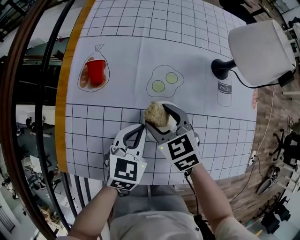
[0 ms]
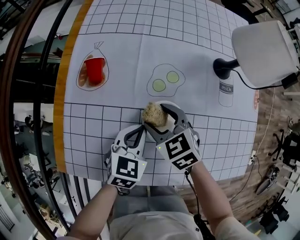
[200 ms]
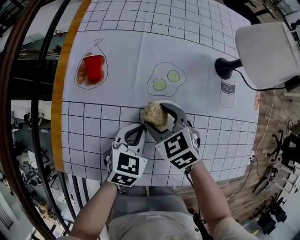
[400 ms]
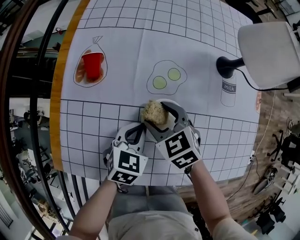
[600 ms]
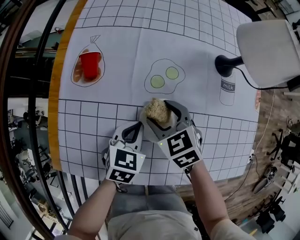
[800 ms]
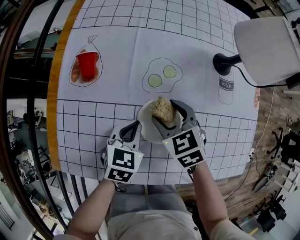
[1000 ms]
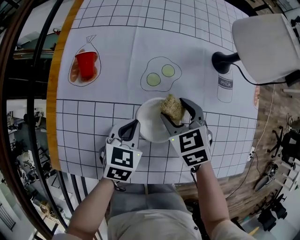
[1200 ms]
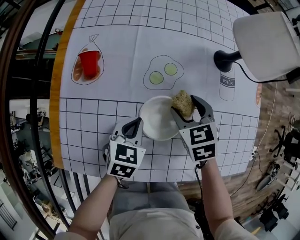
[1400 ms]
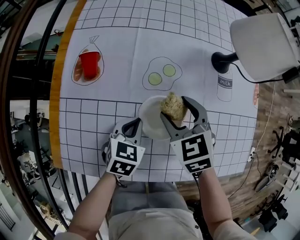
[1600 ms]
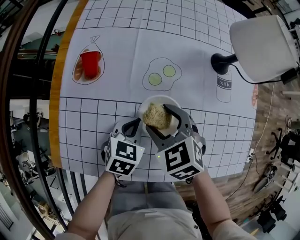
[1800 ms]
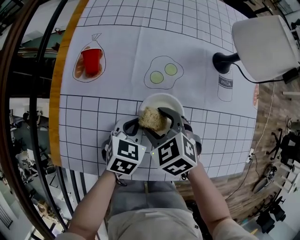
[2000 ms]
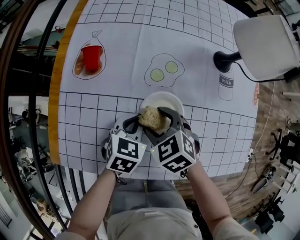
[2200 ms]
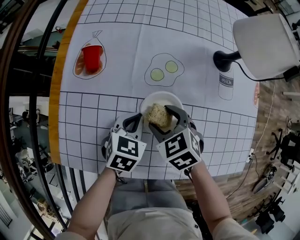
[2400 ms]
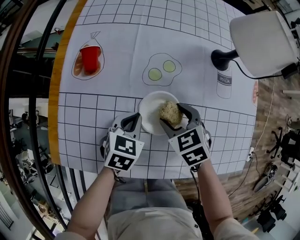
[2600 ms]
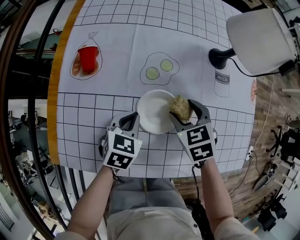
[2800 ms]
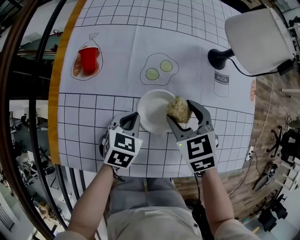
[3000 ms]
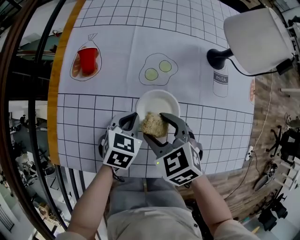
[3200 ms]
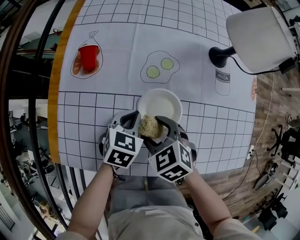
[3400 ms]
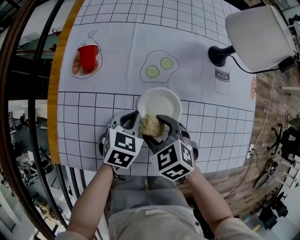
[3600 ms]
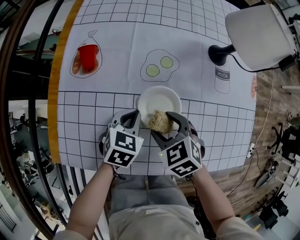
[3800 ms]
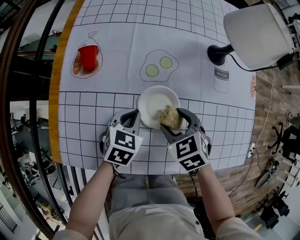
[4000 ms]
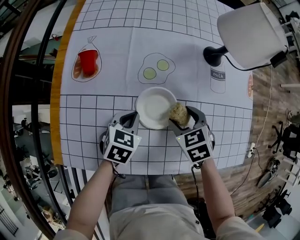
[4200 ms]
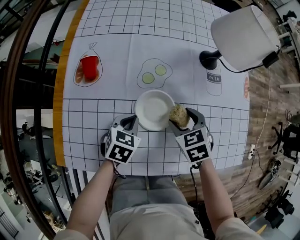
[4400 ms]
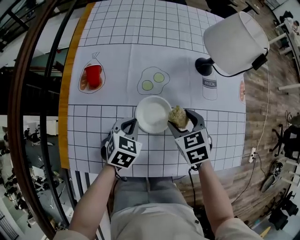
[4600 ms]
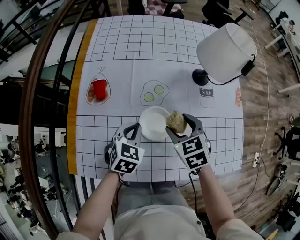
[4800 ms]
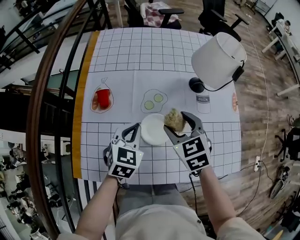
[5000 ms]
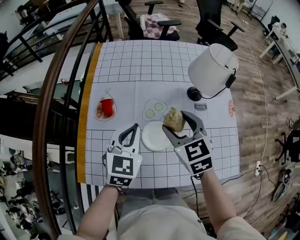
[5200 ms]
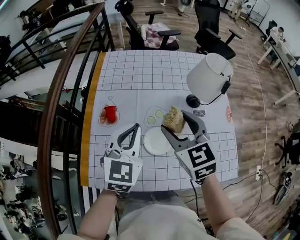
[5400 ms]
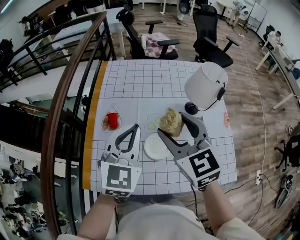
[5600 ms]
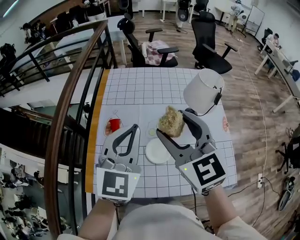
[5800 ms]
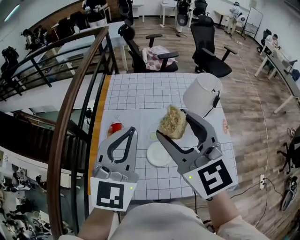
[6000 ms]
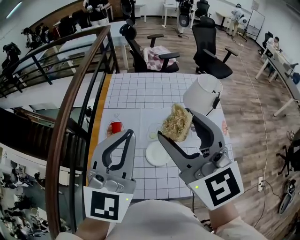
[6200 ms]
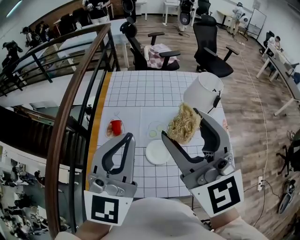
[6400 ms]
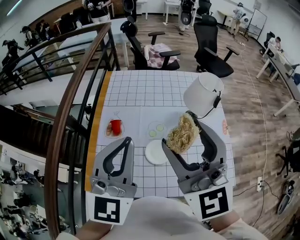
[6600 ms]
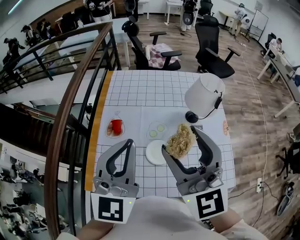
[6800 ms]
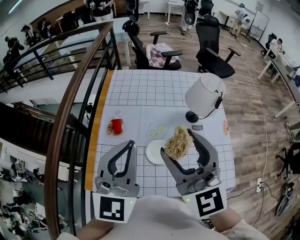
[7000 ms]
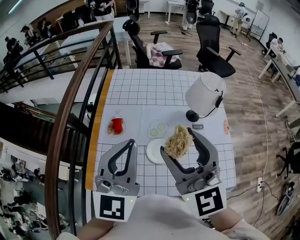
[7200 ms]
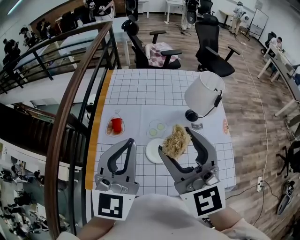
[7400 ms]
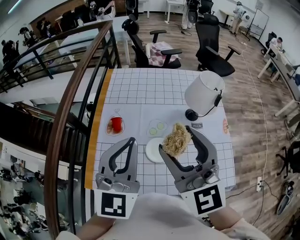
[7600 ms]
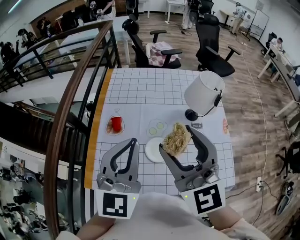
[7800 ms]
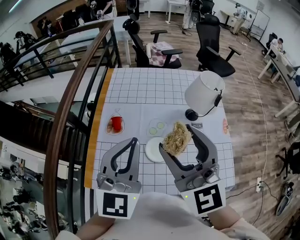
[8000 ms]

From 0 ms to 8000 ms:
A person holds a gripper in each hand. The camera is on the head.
From 0 ms to 1600 ms: The right gripper is displaced to the right by approximately 5 cm, while the left gripper is displaced downward by roughly 5 cm.
From 1600 ms to 3200 ms: The right gripper goes left and right, roughly 10 cm each way, reversing 2 times.
From 3200 ms to 4800 ms: The left gripper is displaced upward by about 10 cm. Meanwhile the right gripper shifts roughly 10 cm to the right and upward.
From 4800 ms to 6400 ms: The two grippers go about 40 cm upward. The left gripper tilts its fingers about 50 degrees upward. The right gripper tips its fingers upward by some 50 degrees.
From 6400 ms to 8000 ms: The two grippers go approximately 5 cm downward.

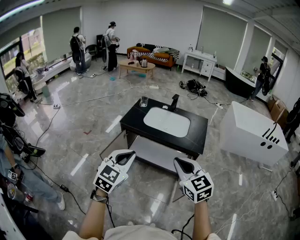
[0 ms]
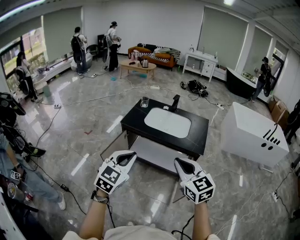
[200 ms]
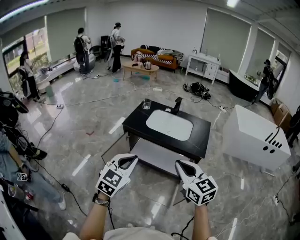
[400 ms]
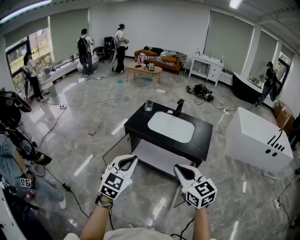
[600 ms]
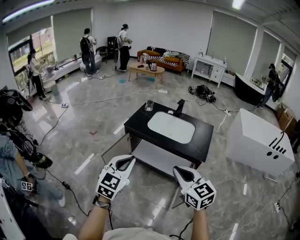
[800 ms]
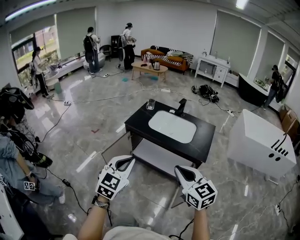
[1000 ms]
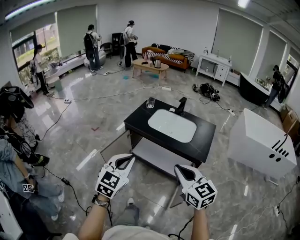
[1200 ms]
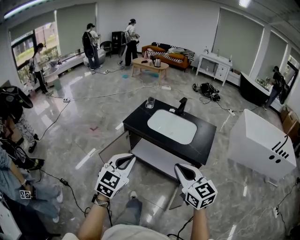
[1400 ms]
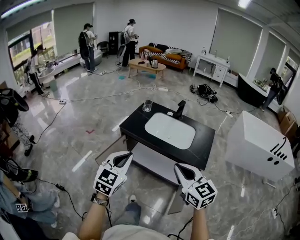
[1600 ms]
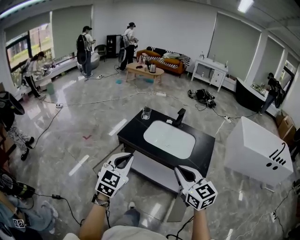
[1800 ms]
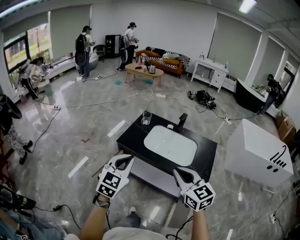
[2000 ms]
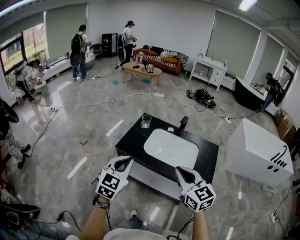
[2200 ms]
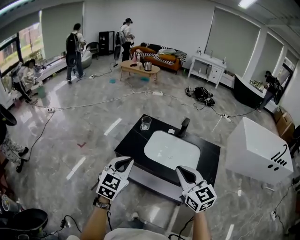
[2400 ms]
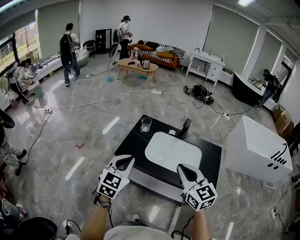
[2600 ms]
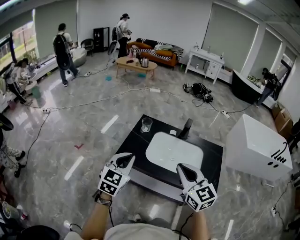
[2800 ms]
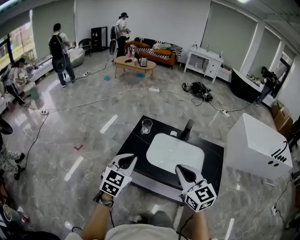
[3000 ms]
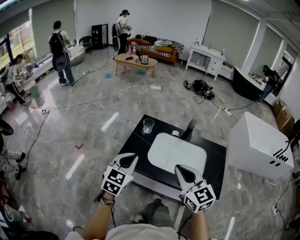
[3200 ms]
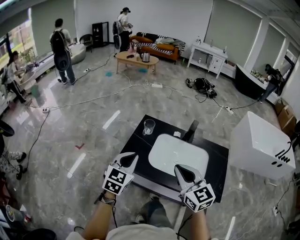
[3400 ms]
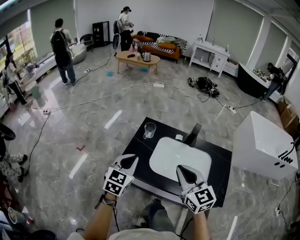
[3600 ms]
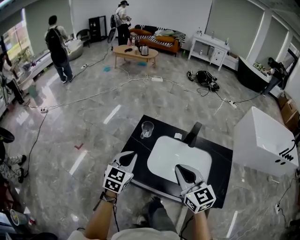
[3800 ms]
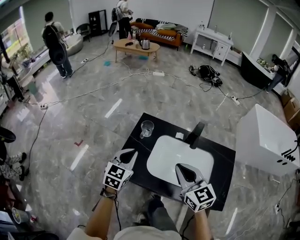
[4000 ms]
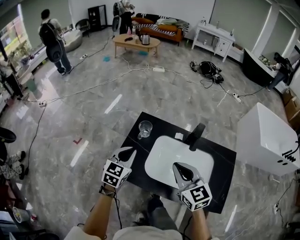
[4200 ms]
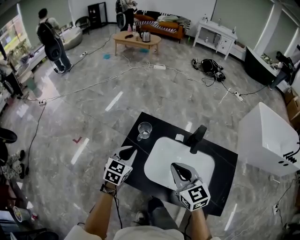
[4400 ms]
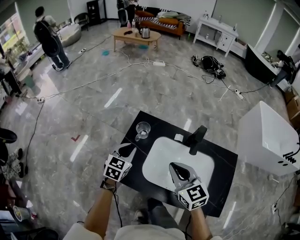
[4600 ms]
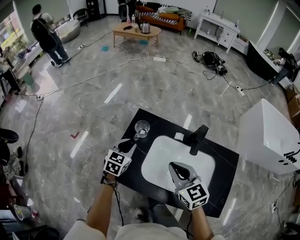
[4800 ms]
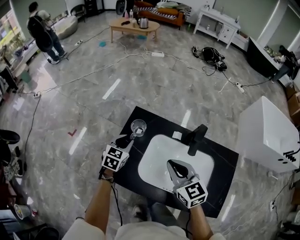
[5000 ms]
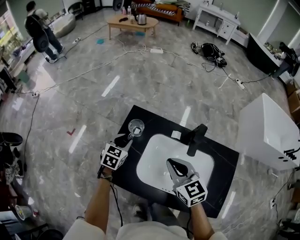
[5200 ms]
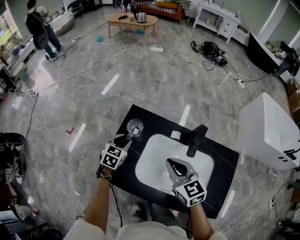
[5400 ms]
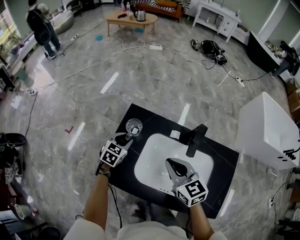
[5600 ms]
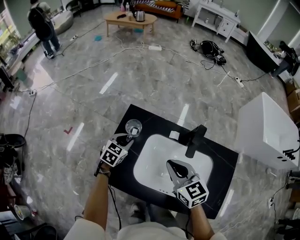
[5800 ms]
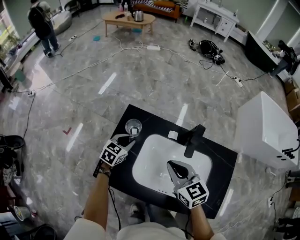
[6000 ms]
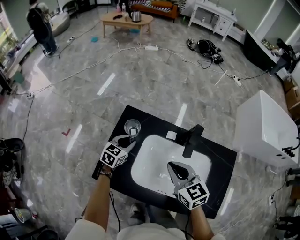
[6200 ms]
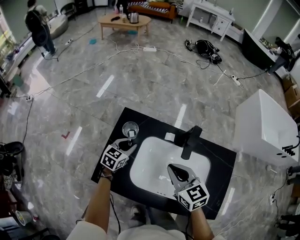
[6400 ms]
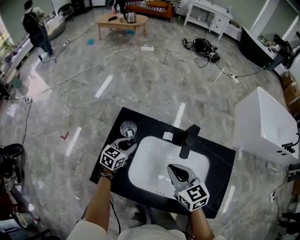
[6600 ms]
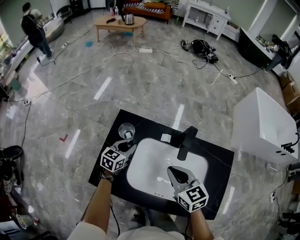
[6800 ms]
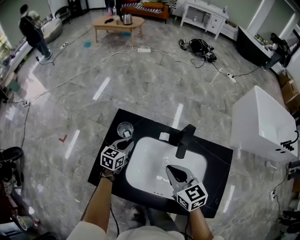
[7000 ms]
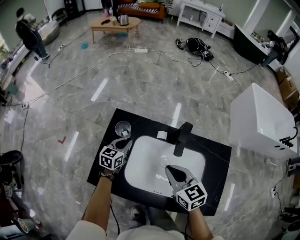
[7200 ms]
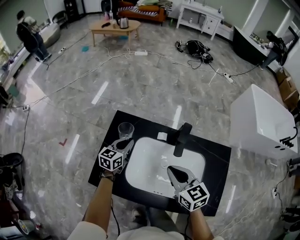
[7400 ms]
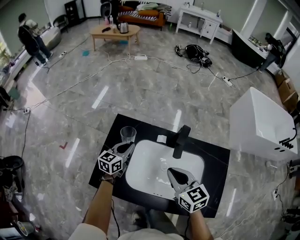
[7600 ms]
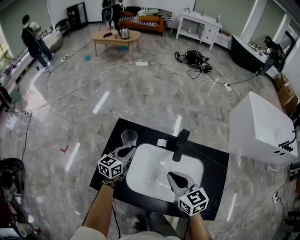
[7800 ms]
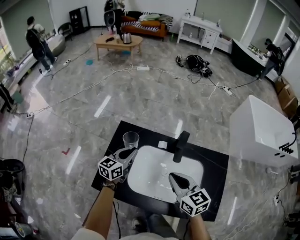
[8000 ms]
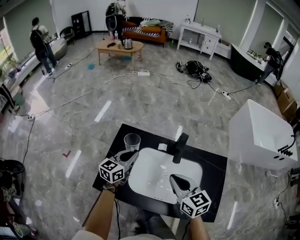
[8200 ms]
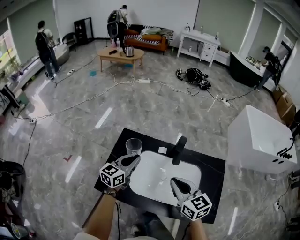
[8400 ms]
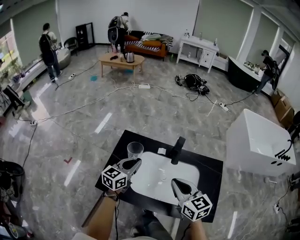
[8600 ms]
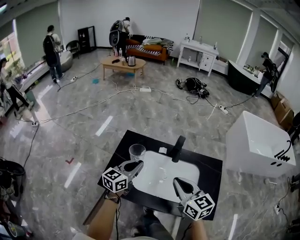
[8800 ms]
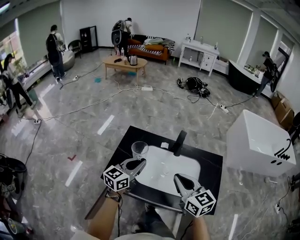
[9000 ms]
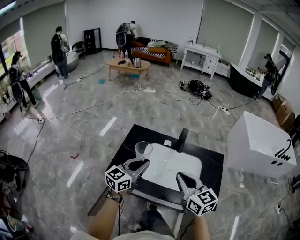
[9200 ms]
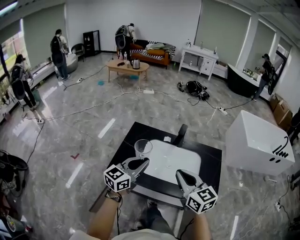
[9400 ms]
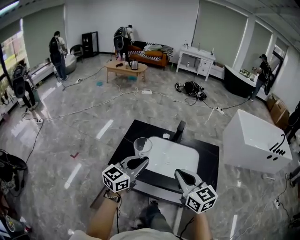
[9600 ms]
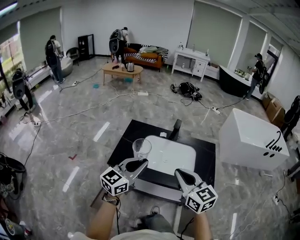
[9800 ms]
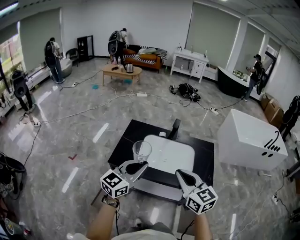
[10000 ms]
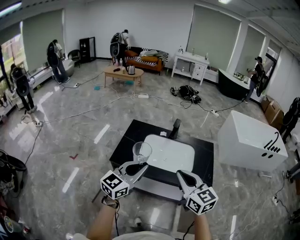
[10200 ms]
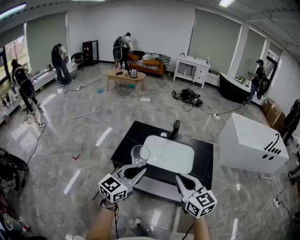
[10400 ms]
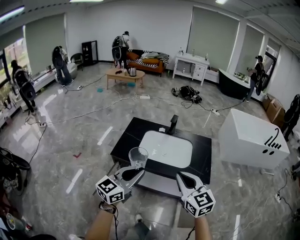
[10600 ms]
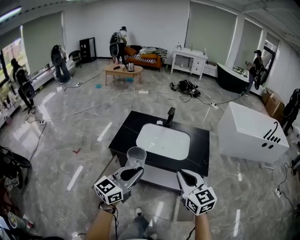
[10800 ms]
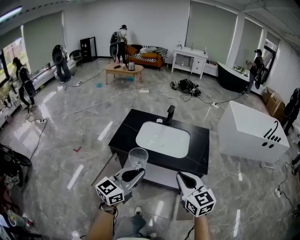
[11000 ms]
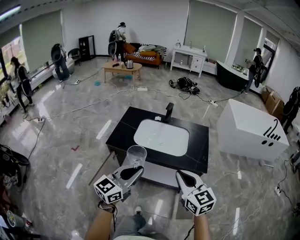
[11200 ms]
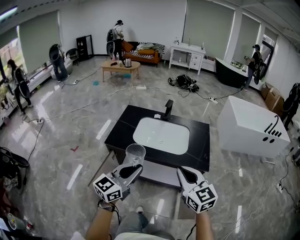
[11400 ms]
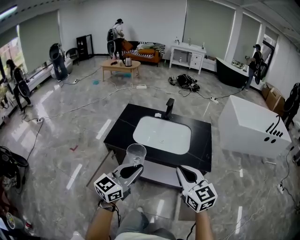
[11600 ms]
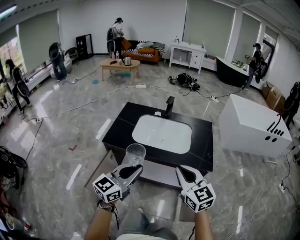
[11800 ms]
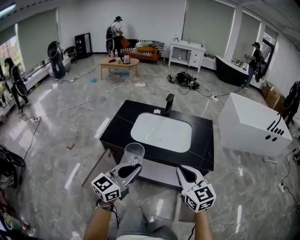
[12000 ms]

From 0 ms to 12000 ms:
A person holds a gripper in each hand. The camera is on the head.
From 0 ms to 1600 ms: The grippers both shift forward by about 10 cm.
From 1600 ms to 3000 ms: The two grippers go approximately 30 cm forward.
From 3000 ms to 4400 ms: The grippers both shift forward and downward by roughly 25 cm.
From 4400 ms to 6000 ms: The right gripper heads downward and forward, covering roughly 10 cm. Meanwhile the left gripper shifts approximately 15 cm downward and forward.
From 6000 ms to 7600 ms: The grippers both shift to the right by some 5 cm. The left gripper turns by some 20 degrees.
From 7600 ms to 9000 ms: Both grippers travel together backward and upward, some 20 cm.
From 9000 ms to 10400 ms: Both grippers travel together backward, some 30 cm.
From 10400 ms to 12000 ms: Both grippers travel together downward and to the right, some 15 cm.

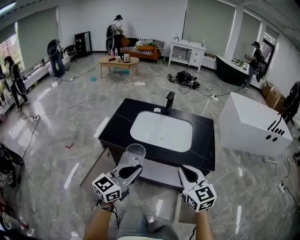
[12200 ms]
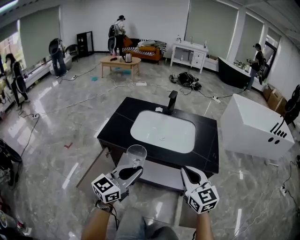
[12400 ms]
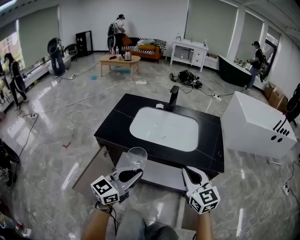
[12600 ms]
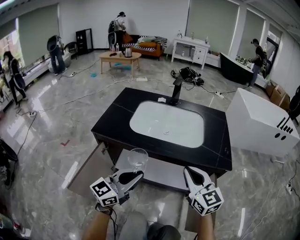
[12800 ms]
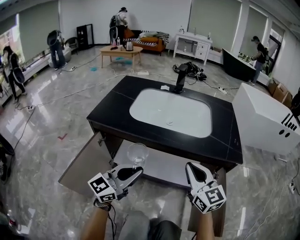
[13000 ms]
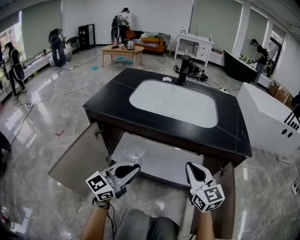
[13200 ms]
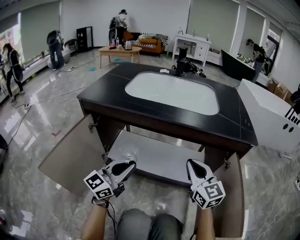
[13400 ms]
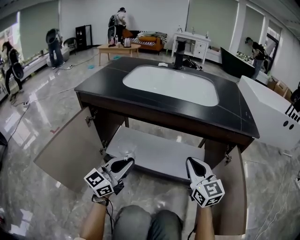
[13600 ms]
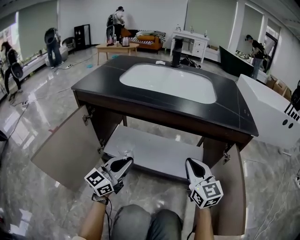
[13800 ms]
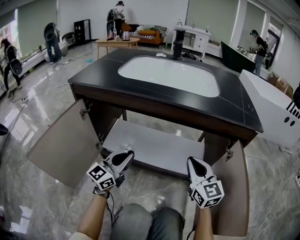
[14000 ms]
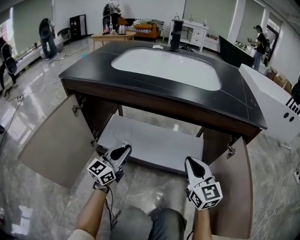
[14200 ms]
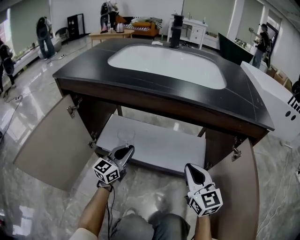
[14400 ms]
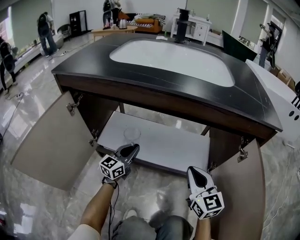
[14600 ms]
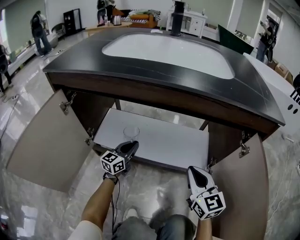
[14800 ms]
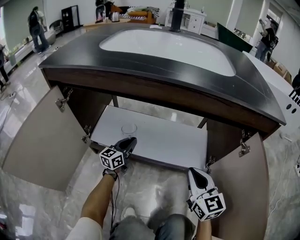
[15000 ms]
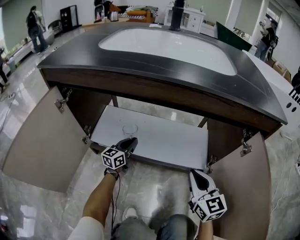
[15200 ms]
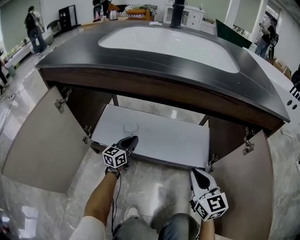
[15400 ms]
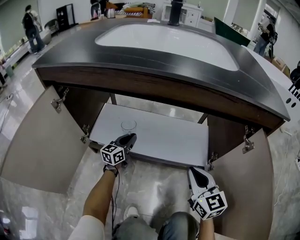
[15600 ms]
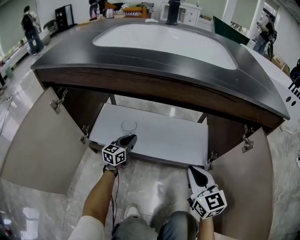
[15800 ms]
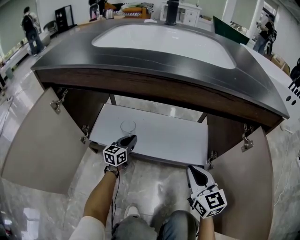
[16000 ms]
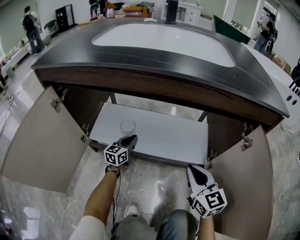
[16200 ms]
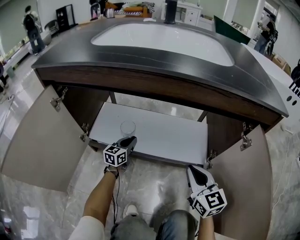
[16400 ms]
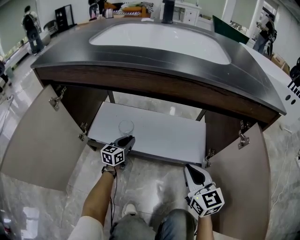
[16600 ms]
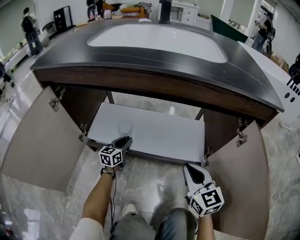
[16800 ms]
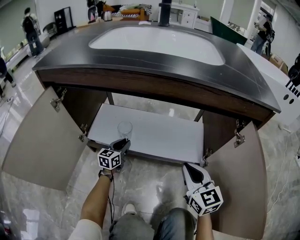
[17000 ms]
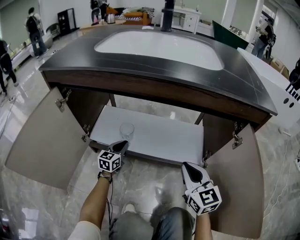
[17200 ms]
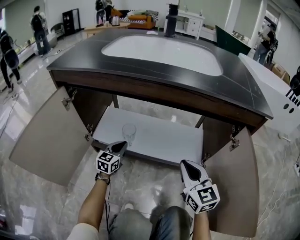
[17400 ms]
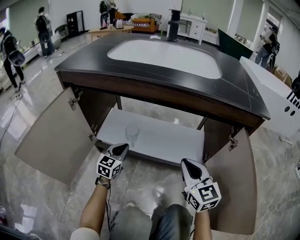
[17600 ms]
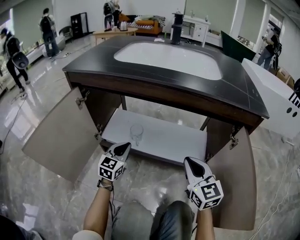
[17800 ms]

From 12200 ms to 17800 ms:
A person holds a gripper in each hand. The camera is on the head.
From 12200 ms to 13600 ms: The two grippers go some 40 cm downward.
From 13600 ms to 15000 ms: The right gripper goes approximately 15 cm downward. Meanwhile the left gripper shifts some 30 cm downward and forward, and turns by some 20 degrees.
From 15000 ms to 16400 ms: The left gripper moves downward, approximately 5 cm.
From 16400 ms to 17800 ms: The left gripper travels upward and backward by some 20 cm, and rotates about 20 degrees; the right gripper shifts roughly 10 cm upward.
